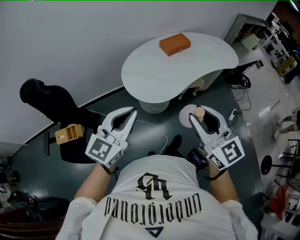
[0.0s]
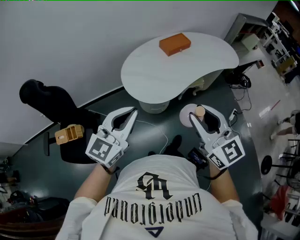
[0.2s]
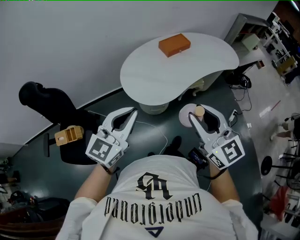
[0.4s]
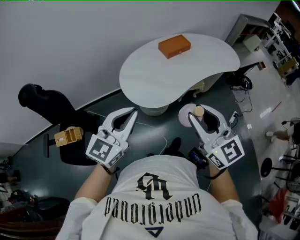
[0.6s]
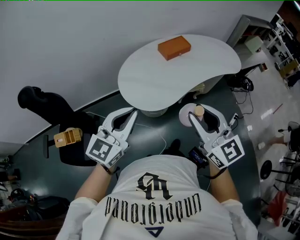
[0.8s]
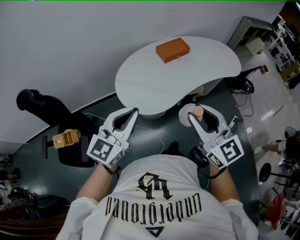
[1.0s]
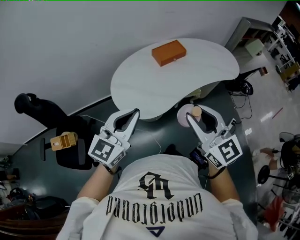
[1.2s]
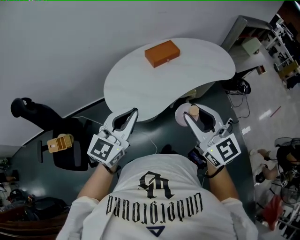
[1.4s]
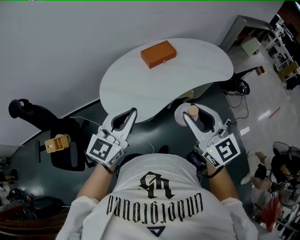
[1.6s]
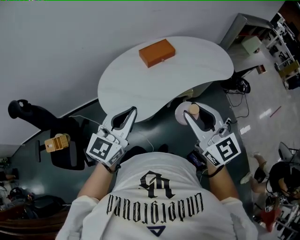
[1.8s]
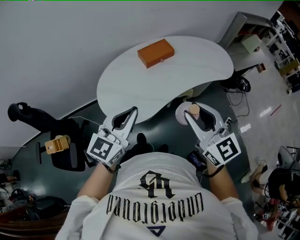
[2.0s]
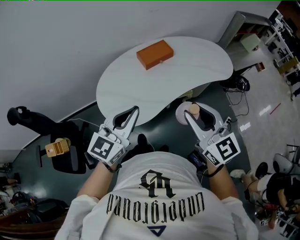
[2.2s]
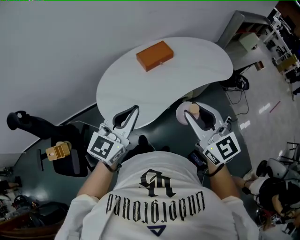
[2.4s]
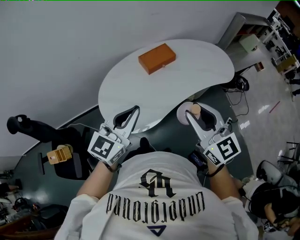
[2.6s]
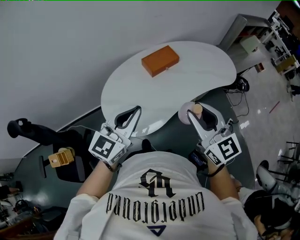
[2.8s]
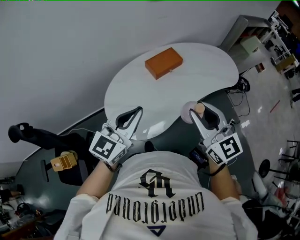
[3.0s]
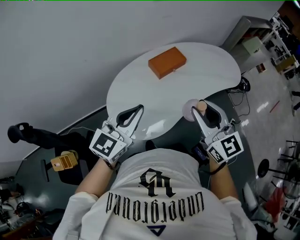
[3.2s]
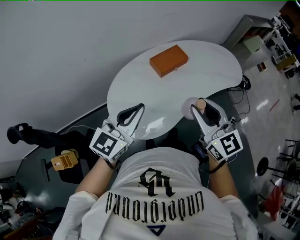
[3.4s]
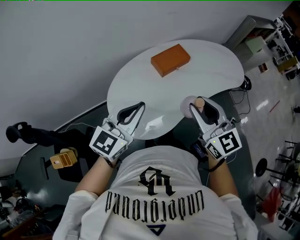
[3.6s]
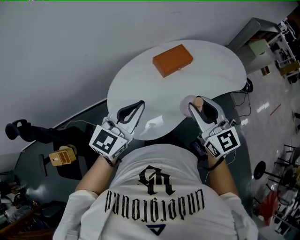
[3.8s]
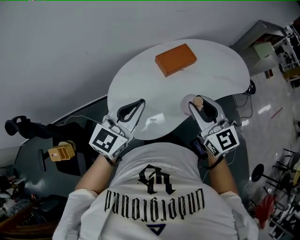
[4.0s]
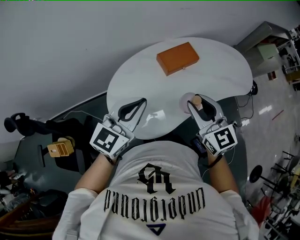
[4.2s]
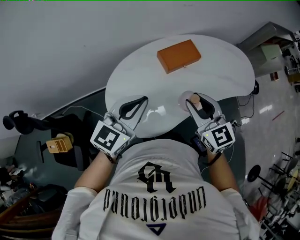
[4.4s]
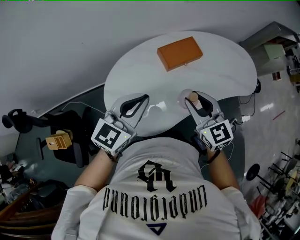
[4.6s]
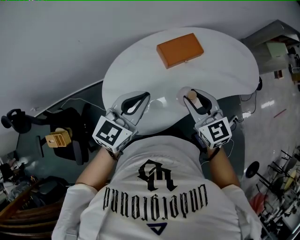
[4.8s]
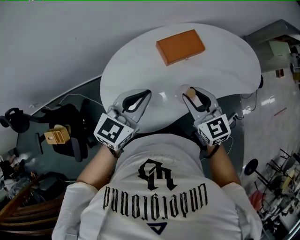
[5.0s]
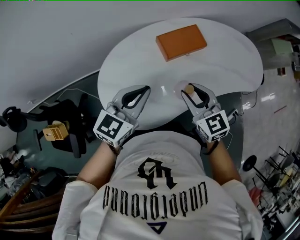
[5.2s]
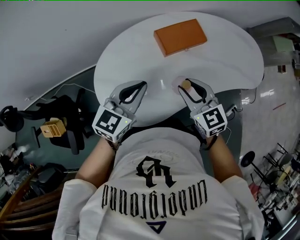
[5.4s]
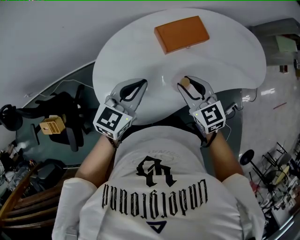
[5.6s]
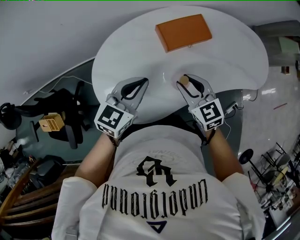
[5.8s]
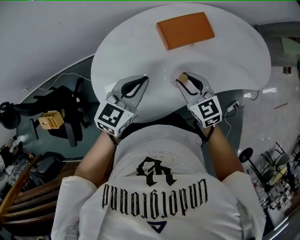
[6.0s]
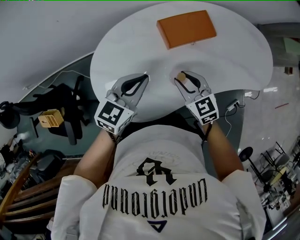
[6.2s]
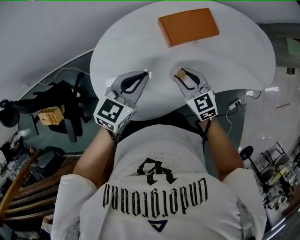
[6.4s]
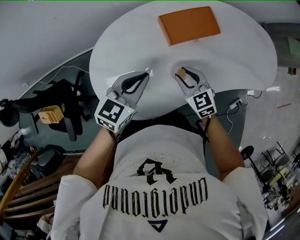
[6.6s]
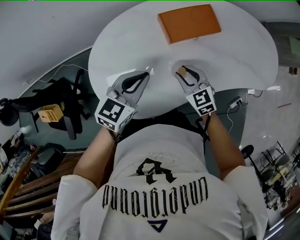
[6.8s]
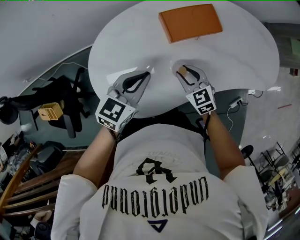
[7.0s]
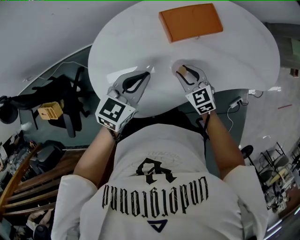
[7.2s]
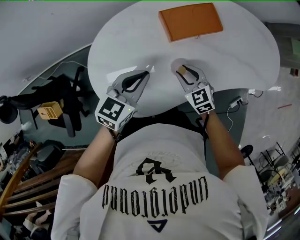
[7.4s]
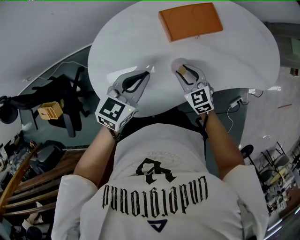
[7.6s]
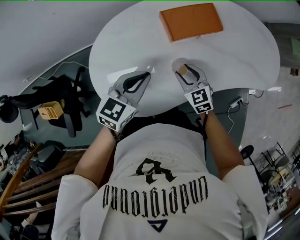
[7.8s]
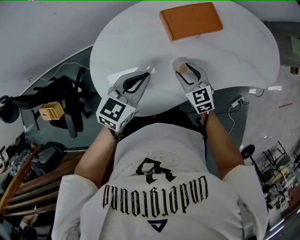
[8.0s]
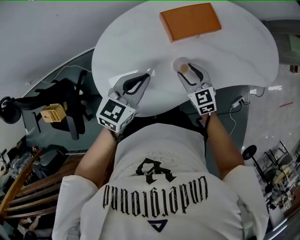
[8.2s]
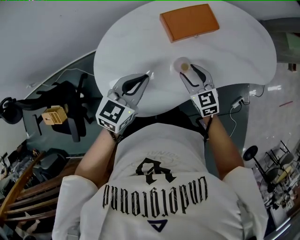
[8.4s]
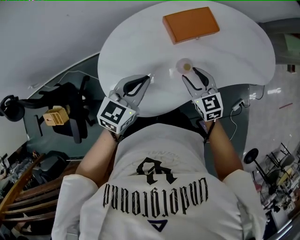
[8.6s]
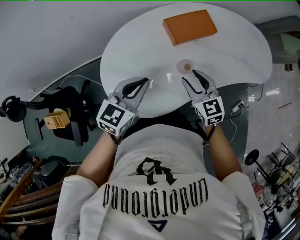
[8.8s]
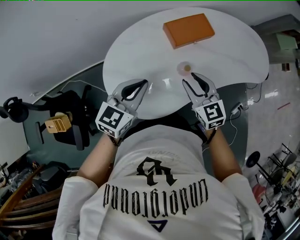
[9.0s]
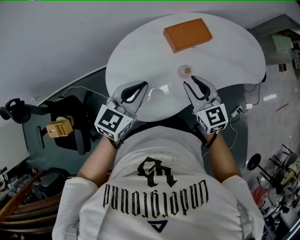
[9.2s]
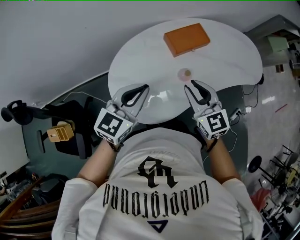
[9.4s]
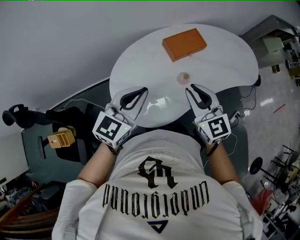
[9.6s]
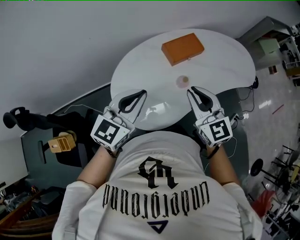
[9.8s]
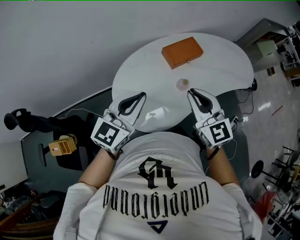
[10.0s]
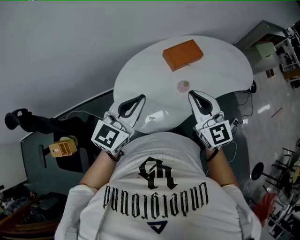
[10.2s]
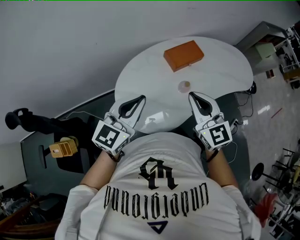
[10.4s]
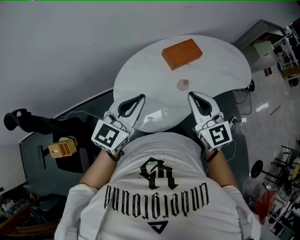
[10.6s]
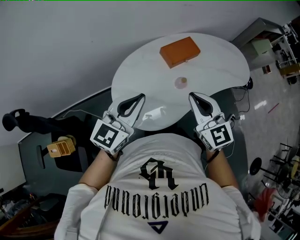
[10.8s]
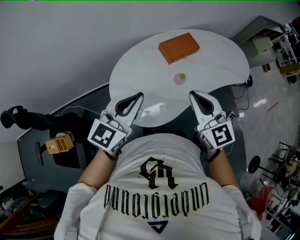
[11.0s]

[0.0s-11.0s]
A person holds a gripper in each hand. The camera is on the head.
0.0s to 1.6s: The right gripper is displaced forward and to the right by approximately 25 cm. The left gripper shifts about 25 cm to the right and forward.
1.6s to 3.2s: Both grippers move forward and to the left, roughly 15 cm.
3.2s to 4.8s: The right gripper is displaced downward and forward by some 20 cm, and turns by roughly 20 degrees; the left gripper moves forward and downward, roughly 15 cm.
4.8s to 6.2s: The left gripper heads downward and forward, covering approximately 15 cm; the right gripper heads downward, covering some 15 cm.
6.2s to 7.8s: The right gripper moves downward, roughly 10 cm.
7.8s to 9.4s: The right gripper is displaced upward by approximately 25 cm, and rotates some 20 degrees. Meanwhile the left gripper is displaced upward, backward and to the left by some 20 cm.
9.4s to 11.0s: Both grippers move upward and backward, about 10 cm. The right gripper closes.

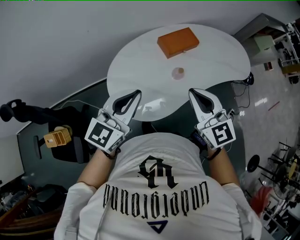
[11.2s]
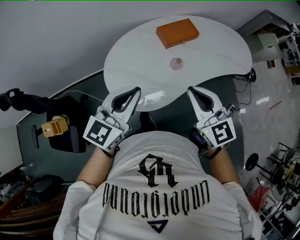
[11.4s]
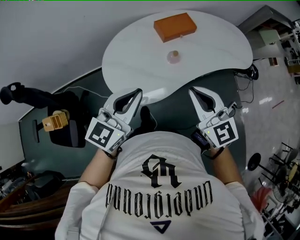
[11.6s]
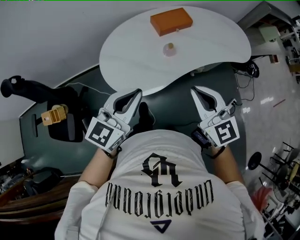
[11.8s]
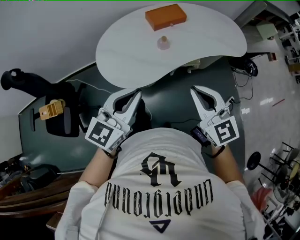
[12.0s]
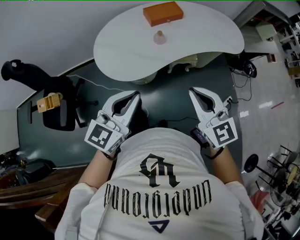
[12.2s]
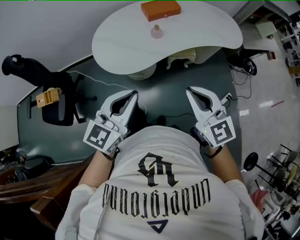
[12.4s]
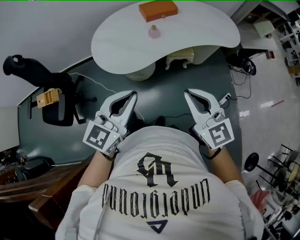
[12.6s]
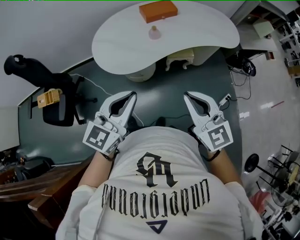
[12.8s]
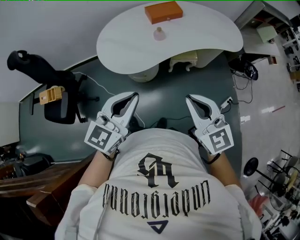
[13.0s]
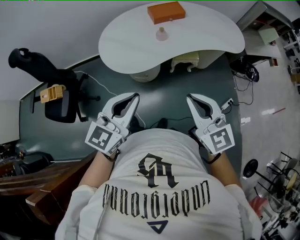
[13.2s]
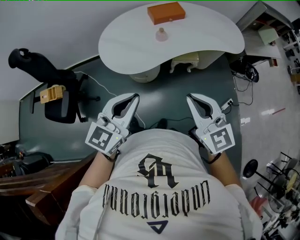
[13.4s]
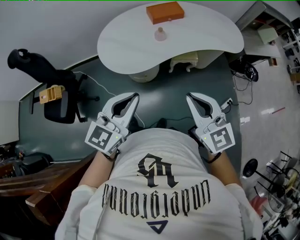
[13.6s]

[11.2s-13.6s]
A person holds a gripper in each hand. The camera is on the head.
11.2s to 12.4s: Both grippers move backward and to the right, roughly 35 cm.
12.4s to 13.6s: The grippers make only small movements.

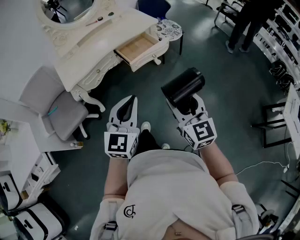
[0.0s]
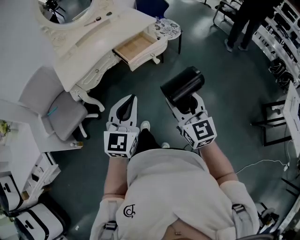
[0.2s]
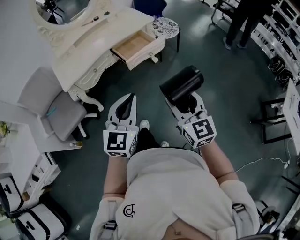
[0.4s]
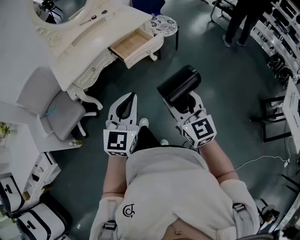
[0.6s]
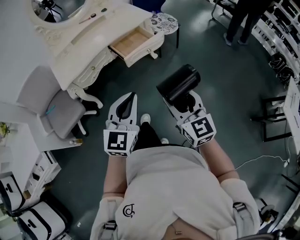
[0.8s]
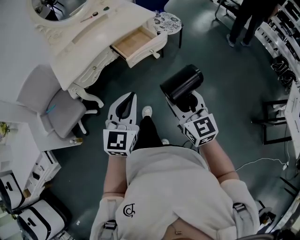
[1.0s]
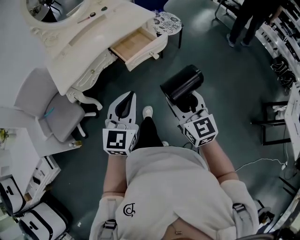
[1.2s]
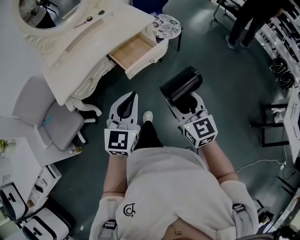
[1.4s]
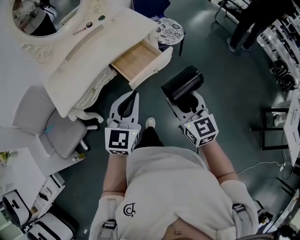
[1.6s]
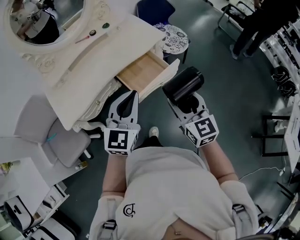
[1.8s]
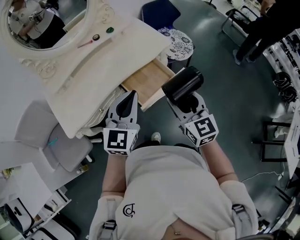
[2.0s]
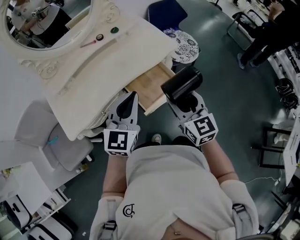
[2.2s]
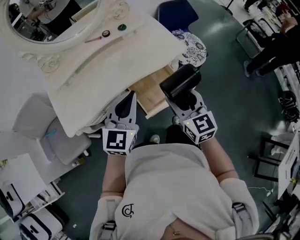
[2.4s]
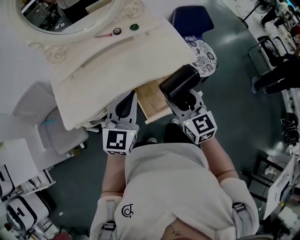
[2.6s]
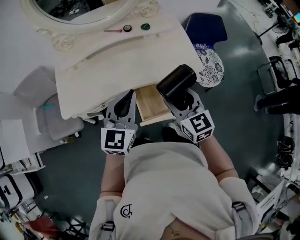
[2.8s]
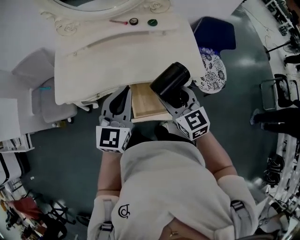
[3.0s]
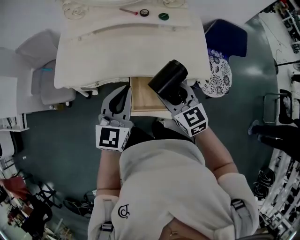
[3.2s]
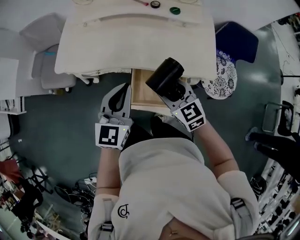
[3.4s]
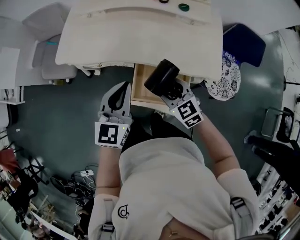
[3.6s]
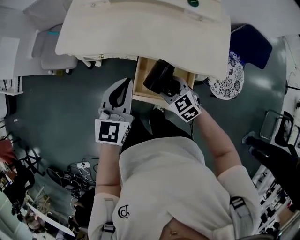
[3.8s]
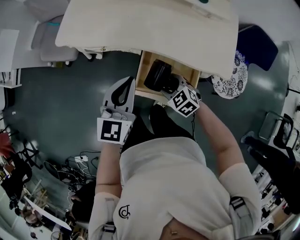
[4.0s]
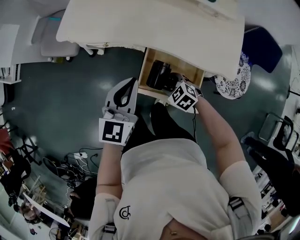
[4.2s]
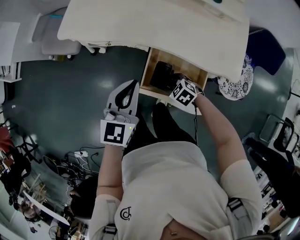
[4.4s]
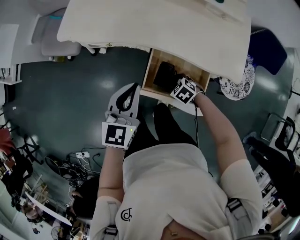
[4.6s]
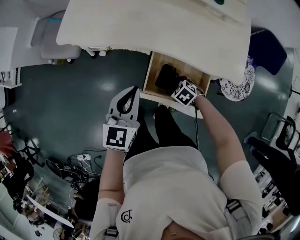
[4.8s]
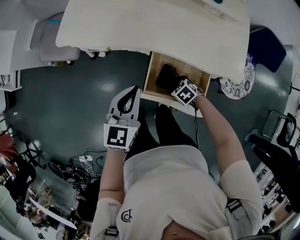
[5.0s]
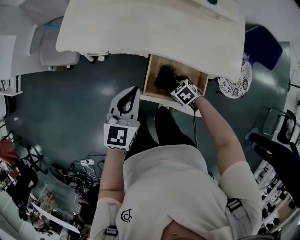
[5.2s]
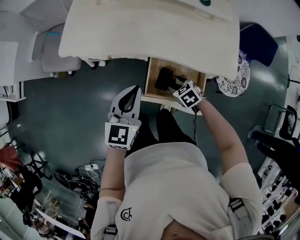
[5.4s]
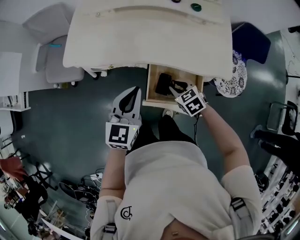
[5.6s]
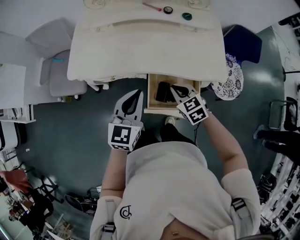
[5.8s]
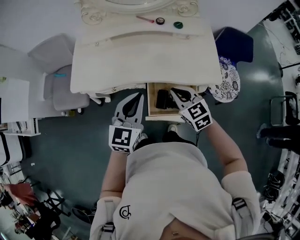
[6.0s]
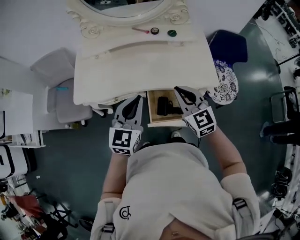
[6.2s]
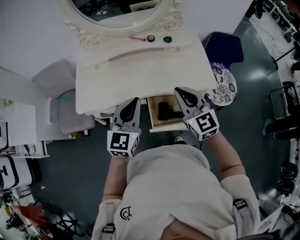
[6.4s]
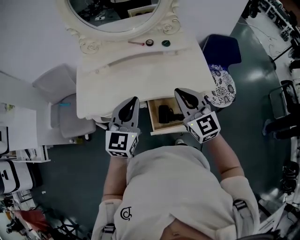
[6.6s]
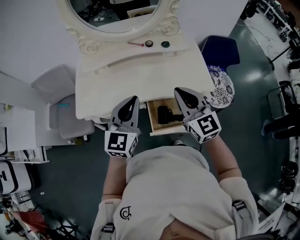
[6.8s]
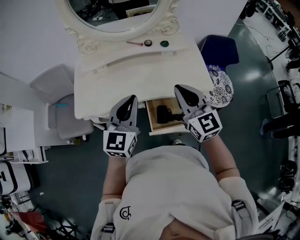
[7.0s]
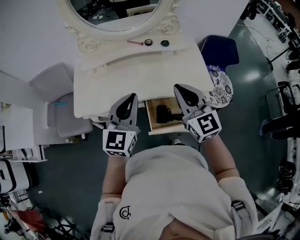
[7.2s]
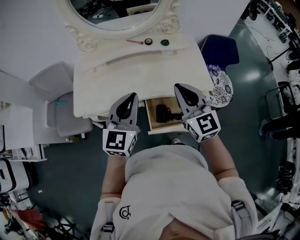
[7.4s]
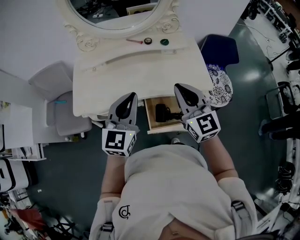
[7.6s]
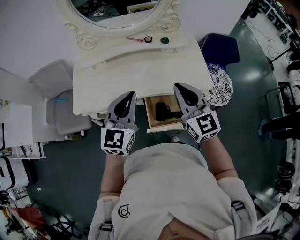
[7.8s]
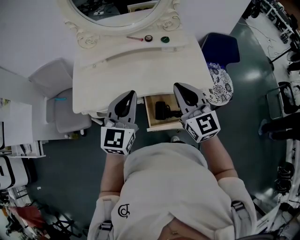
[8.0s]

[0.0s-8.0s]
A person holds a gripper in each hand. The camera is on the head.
0.0s to 1.6s: Both grippers travel together forward, approximately 20 cm.
1.6s to 3.2s: The right gripper changes place by some 40 cm, and swivels about 50 degrees; the left gripper changes place by about 30 cm, and swivels about 40 degrees.
3.2s to 4.8s: The right gripper heads downward, covering about 35 cm, and points its fingers some 50 degrees further downward; the left gripper heads downward, covering roughly 15 cm, and rotates approximately 20 degrees.
4.8s to 6.4s: The right gripper shifts roughly 40 cm upward, tips its fingers upward by roughly 60 degrees, and closes. The left gripper shifts approximately 15 cm upward, and changes its angle by some 30 degrees.
6.4s to 8.0s: There are only small adjustments of the grippers.

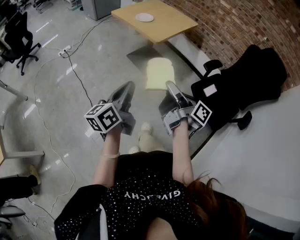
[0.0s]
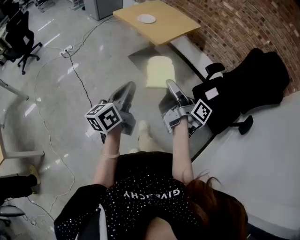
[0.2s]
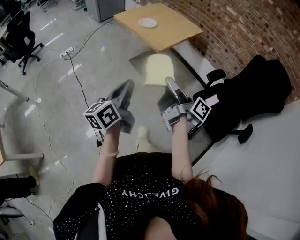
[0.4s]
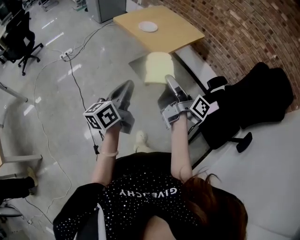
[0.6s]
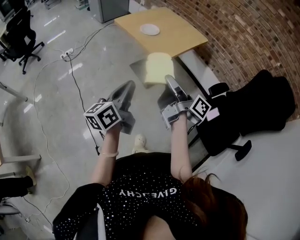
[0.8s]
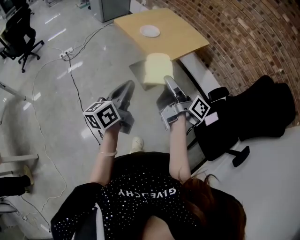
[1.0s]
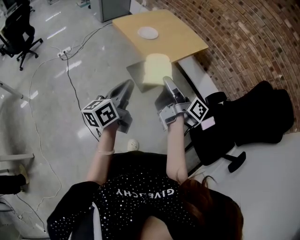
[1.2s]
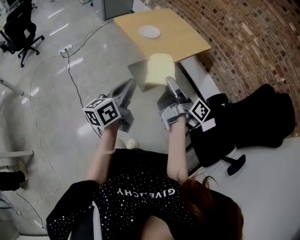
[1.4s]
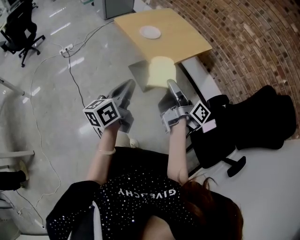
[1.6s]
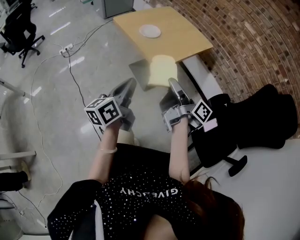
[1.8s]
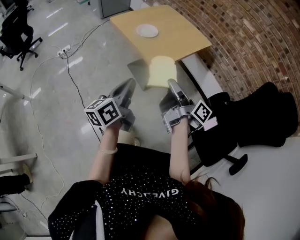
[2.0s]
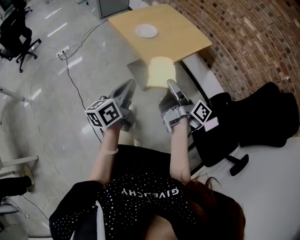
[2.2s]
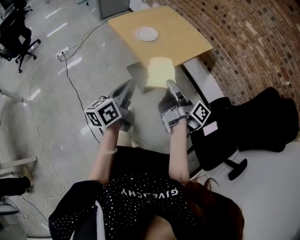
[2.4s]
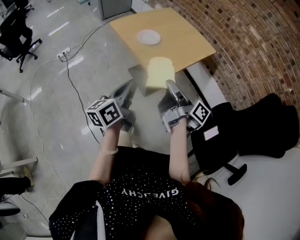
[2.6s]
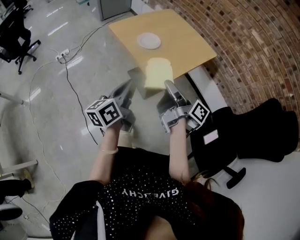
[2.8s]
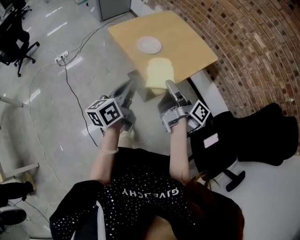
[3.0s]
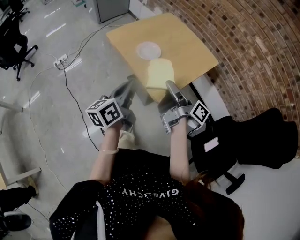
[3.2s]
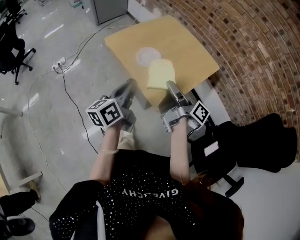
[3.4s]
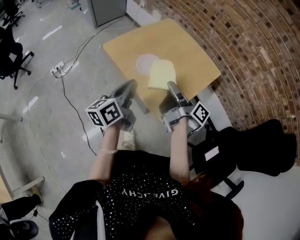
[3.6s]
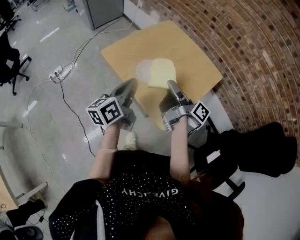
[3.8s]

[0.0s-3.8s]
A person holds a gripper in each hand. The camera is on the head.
0.0s to 1.2s: The left gripper ends up roughly 25 cm from where it was.
1.2s to 2.6s: The left gripper shifts by roughly 15 cm.
2.6s to 3.8s: The left gripper ends up about 30 cm from where it was.
